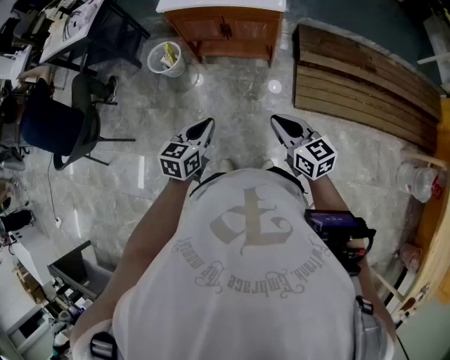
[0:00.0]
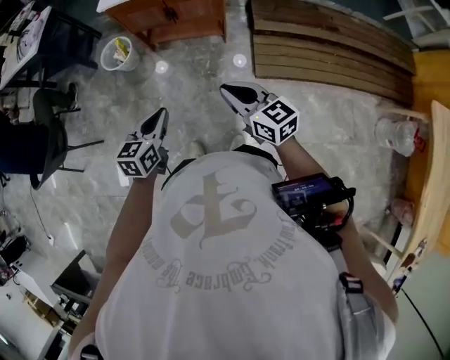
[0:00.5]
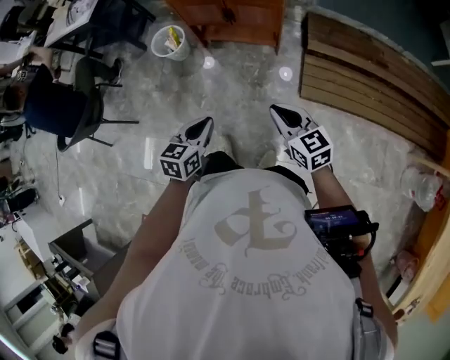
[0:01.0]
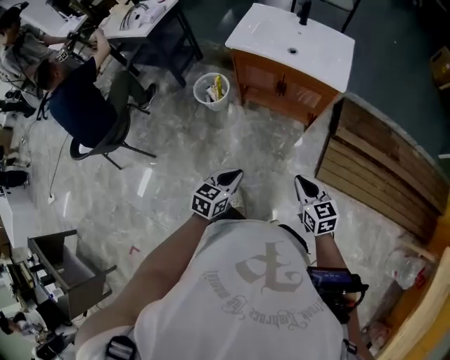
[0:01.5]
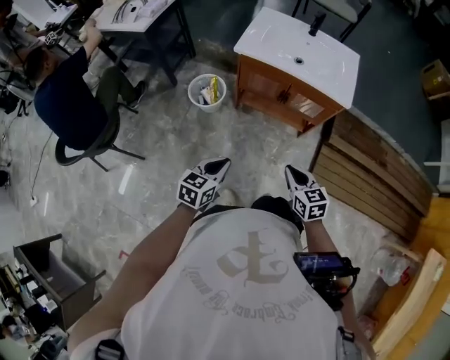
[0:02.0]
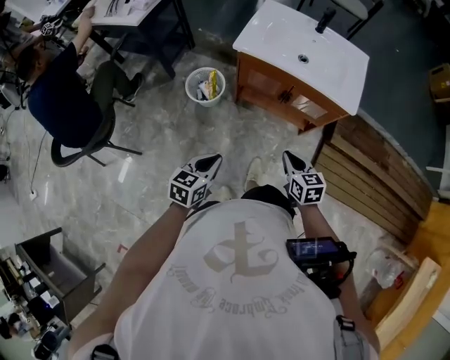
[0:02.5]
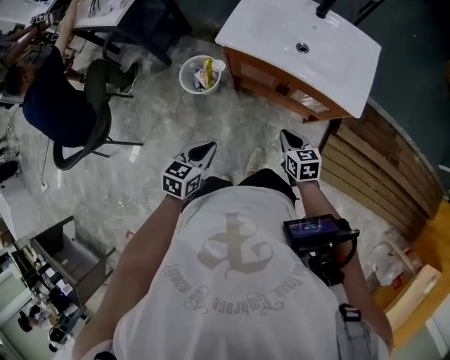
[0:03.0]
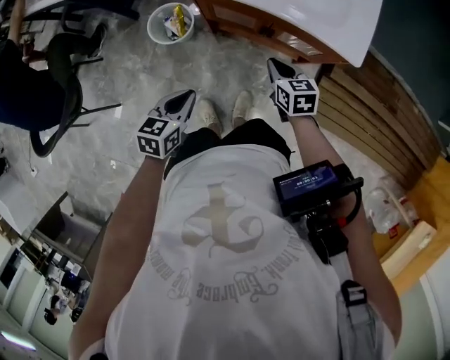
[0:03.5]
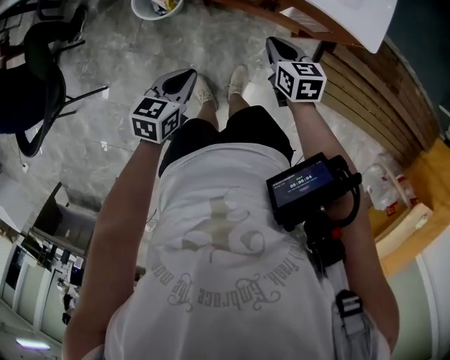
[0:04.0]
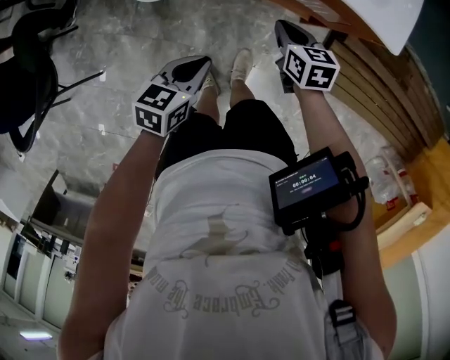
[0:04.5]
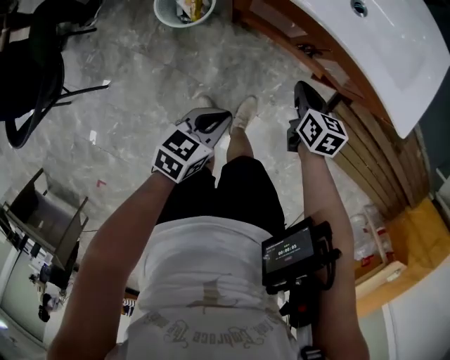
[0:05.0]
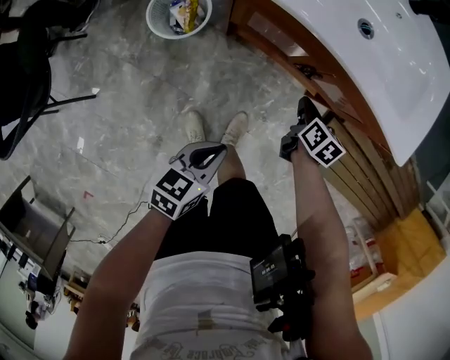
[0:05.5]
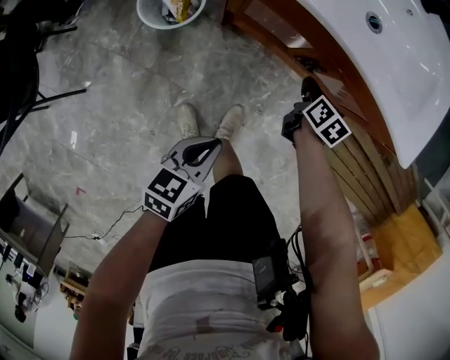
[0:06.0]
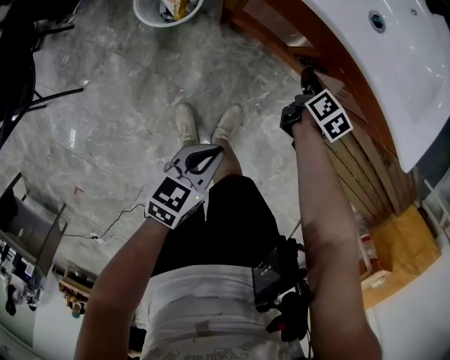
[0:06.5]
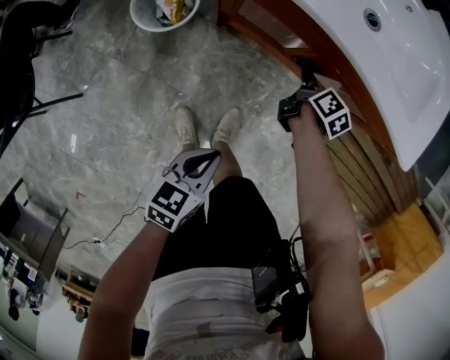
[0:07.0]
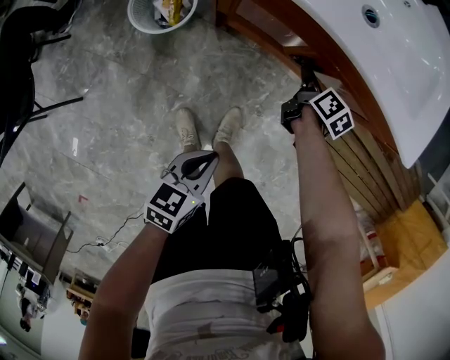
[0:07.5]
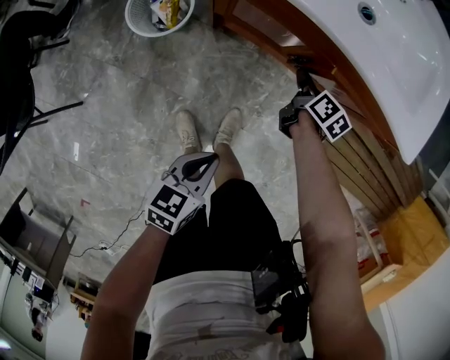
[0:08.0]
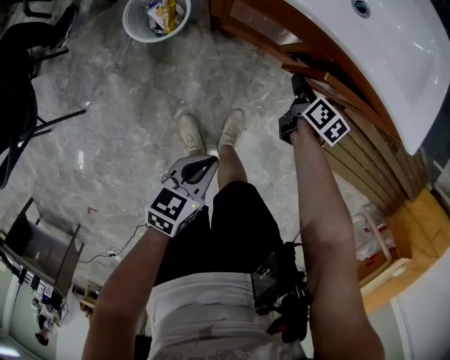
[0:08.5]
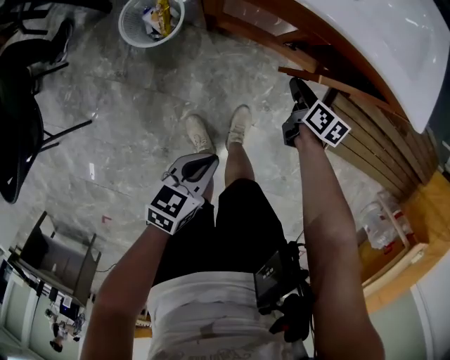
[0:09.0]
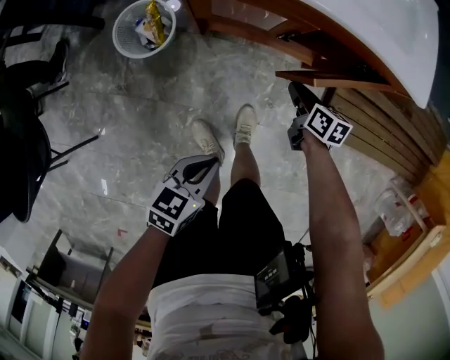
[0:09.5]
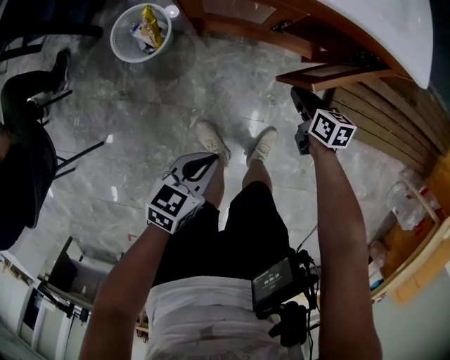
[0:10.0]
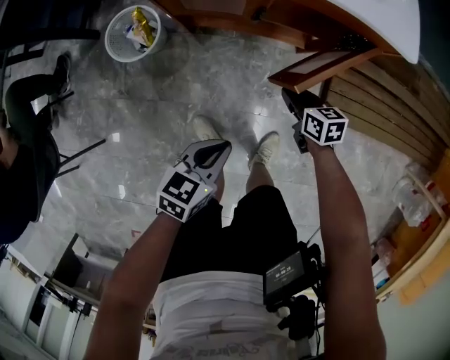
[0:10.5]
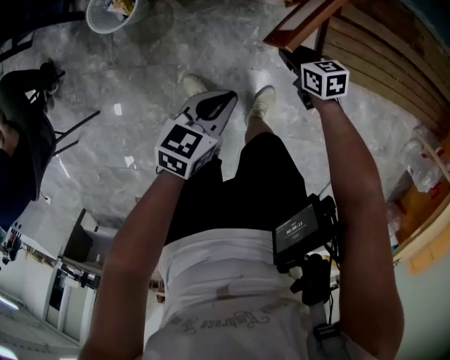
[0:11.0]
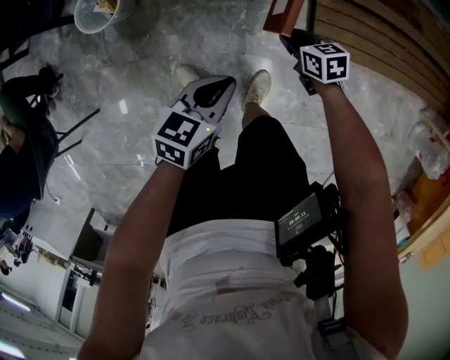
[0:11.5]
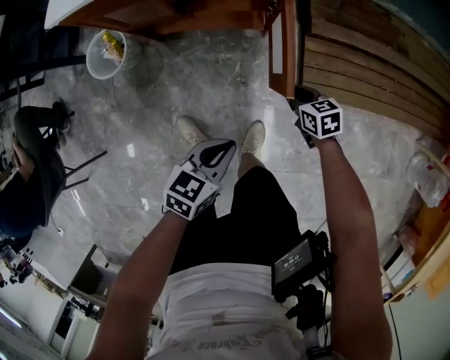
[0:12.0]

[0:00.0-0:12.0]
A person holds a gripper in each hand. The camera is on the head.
0:00.0 to 0:02.0: The right gripper travels forward and to the left by about 25 cm. The left gripper heads to the left and forward, covering approximately 25 cm.
0:02.0 to 0:04.0: The grippers both shift forward and downward by roughly 30 cm.
0:04.0 to 0:06.0: The left gripper moves downward, about 10 cm, while the right gripper travels downward and forward by approximately 25 cm, and swivels approximately 30 degrees.
0:08.0 to 0:10.0: The left gripper changes place by some 5 cm; the right gripper is displaced backward by roughly 15 cm.
0:10.0 to 0:12.0: The left gripper is displaced to the right by some 25 cm. The right gripper goes about 25 cm to the right and backward.

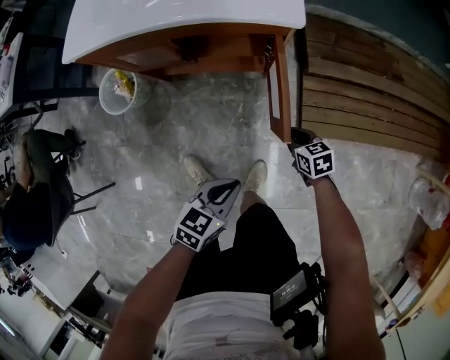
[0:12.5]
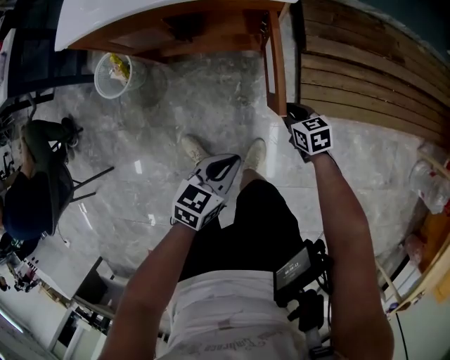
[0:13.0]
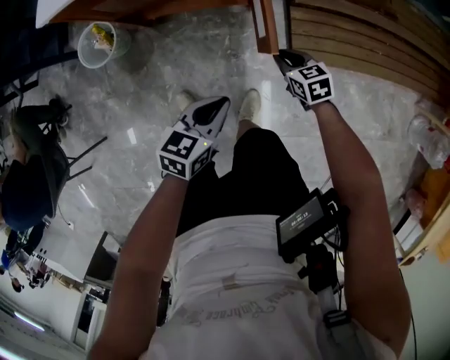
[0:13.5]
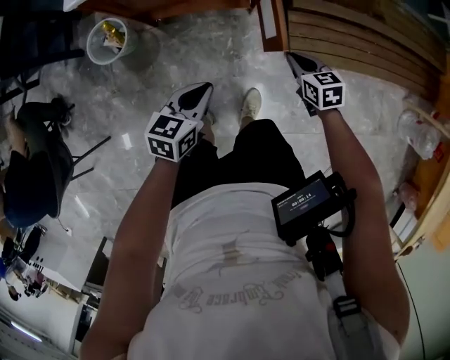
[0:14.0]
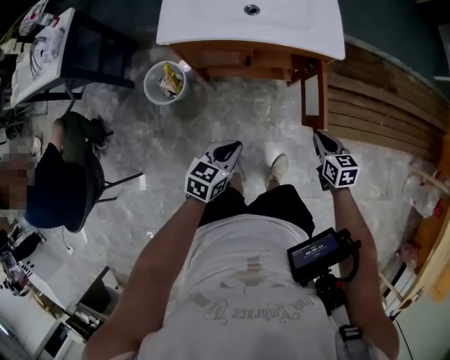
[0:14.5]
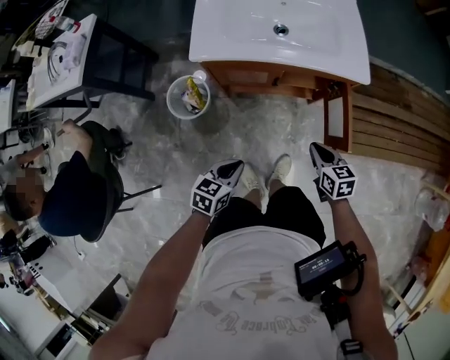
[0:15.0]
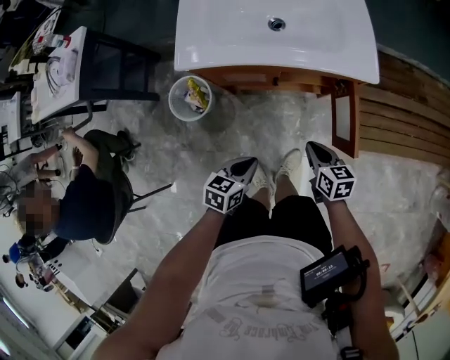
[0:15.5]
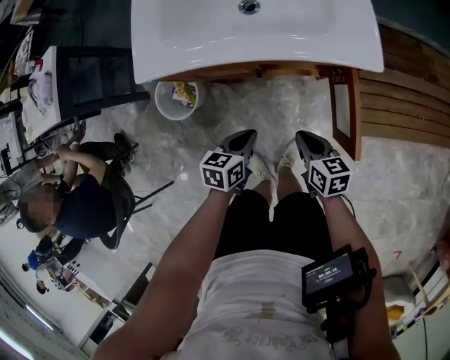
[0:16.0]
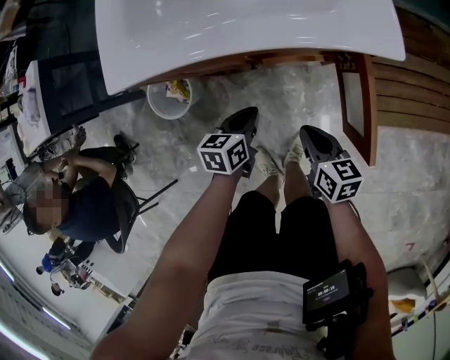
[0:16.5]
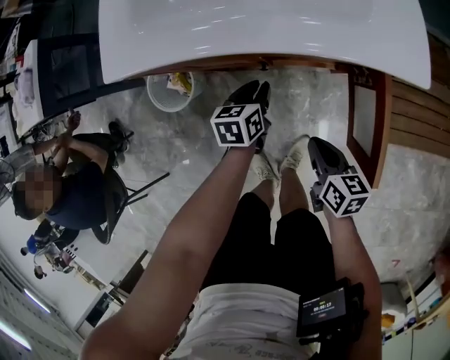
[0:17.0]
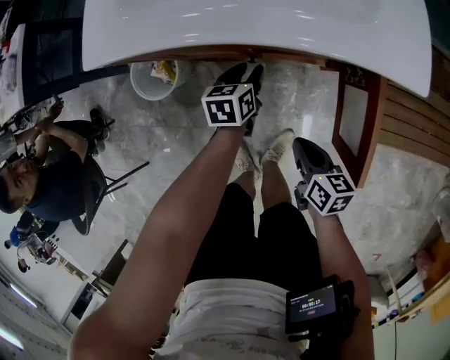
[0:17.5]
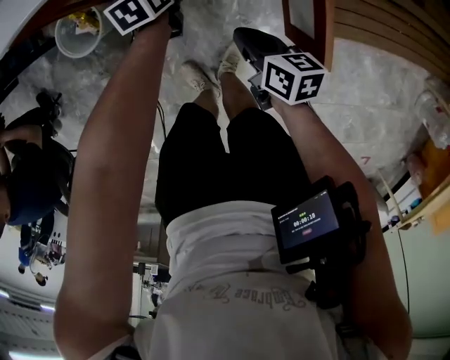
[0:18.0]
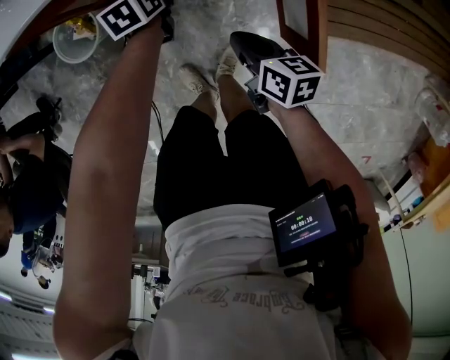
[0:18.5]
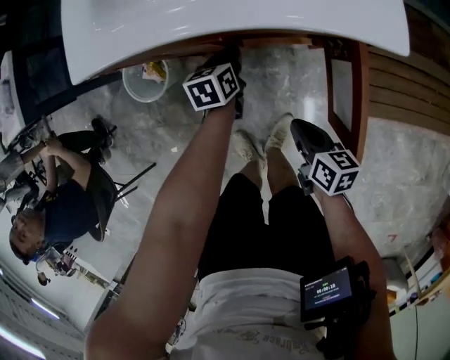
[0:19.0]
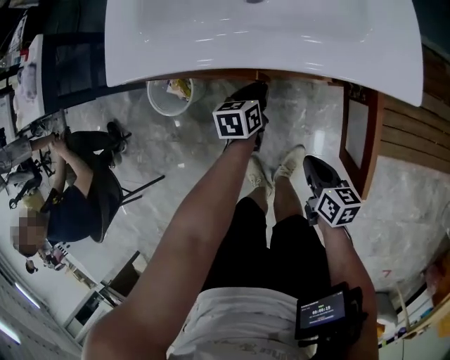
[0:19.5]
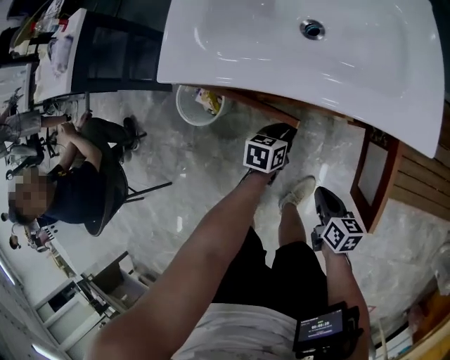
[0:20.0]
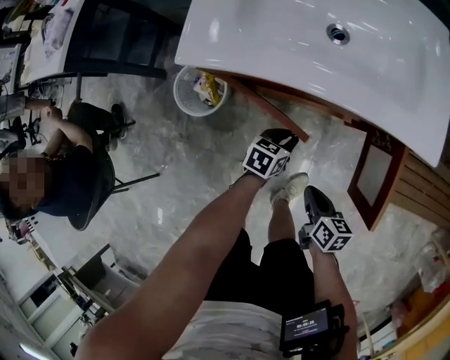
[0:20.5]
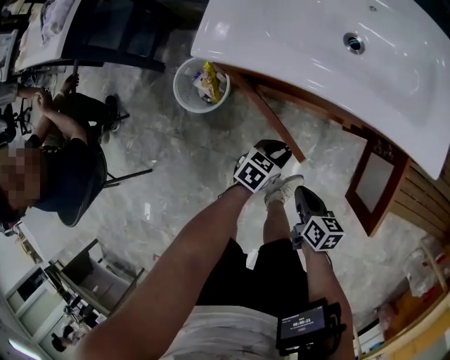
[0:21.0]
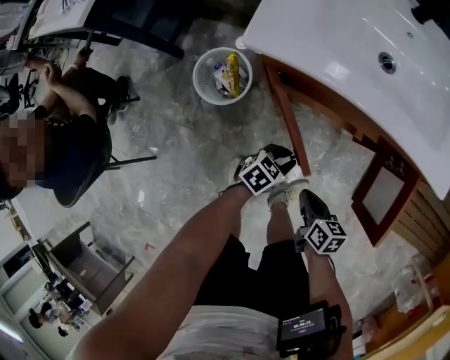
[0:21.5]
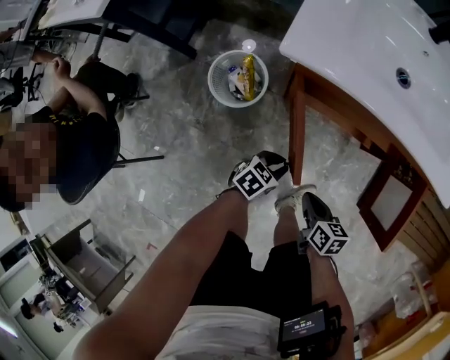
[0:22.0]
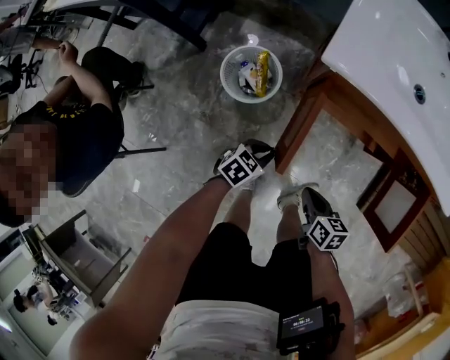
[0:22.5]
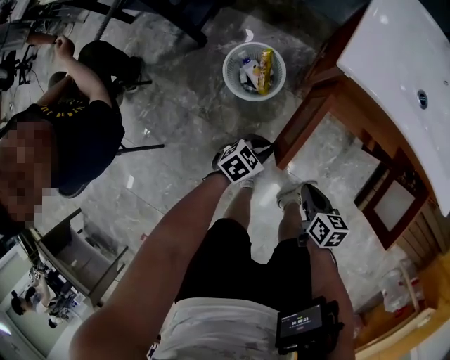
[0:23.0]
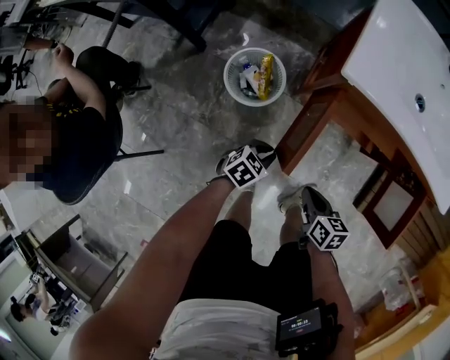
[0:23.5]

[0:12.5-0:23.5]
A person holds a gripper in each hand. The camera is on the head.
0:12.5 to 0:14.5: The right gripper goes approximately 25 cm upward and to the left. Meanwhile the left gripper heads to the left and upward, covering some 25 cm.
0:14.5 to 0:16.0: The right gripper goes about 20 cm to the left, downward and forward; the left gripper moves forward and downward, some 20 cm.
0:16.0 to 0:18.0: The right gripper moves downward, about 10 cm. The left gripper goes approximately 20 cm forward and downward, and opens.
0:18.0 to 0:20.0: The left gripper heads backward, covering some 5 cm.
0:20.0 to 0:21.5: The right gripper is displaced to the left by roughly 15 cm, while the left gripper travels backward and to the left by approximately 15 cm, and swivels some 20 degrees.
0:21.5 to 0:23.5: Both grippers move to the left, roughly 15 cm.

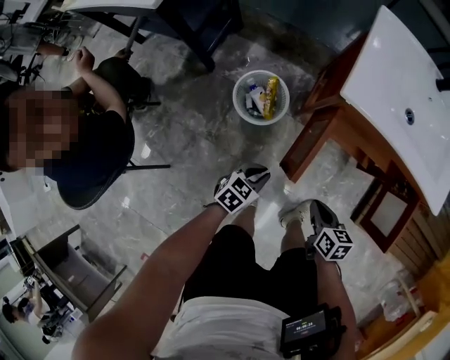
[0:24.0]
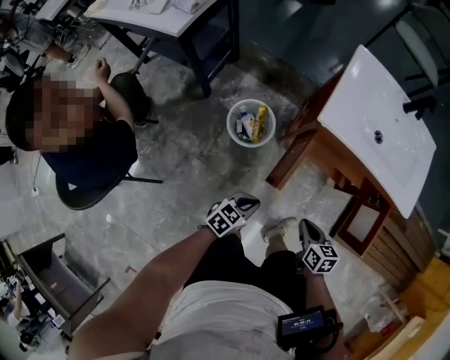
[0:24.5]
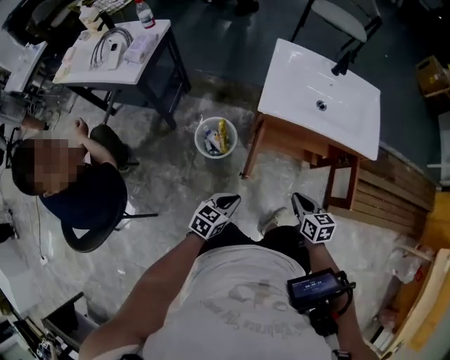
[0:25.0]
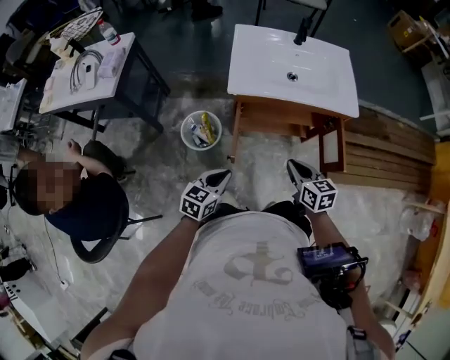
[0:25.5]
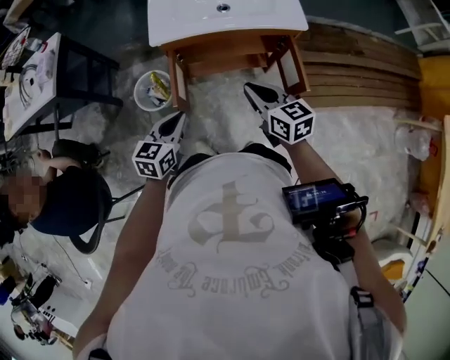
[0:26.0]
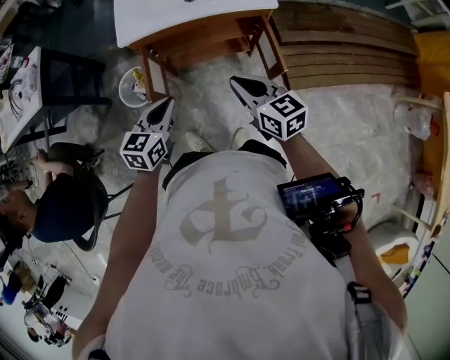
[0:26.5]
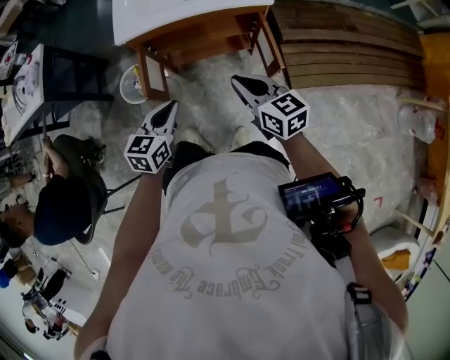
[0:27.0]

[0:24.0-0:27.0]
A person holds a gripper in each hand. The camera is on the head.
0:24.0 to 0:25.5: The grippers both shift upward by some 25 cm. The right gripper changes its angle by roughly 20 degrees.
0:25.5 to 0:27.0: The grippers both shift to the right by some 20 cm.

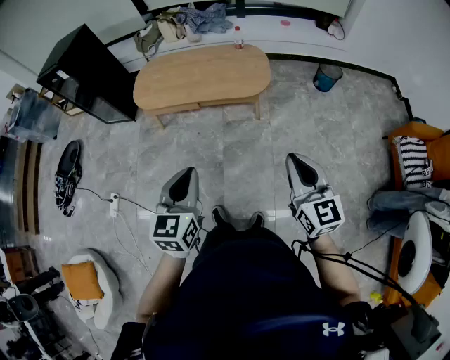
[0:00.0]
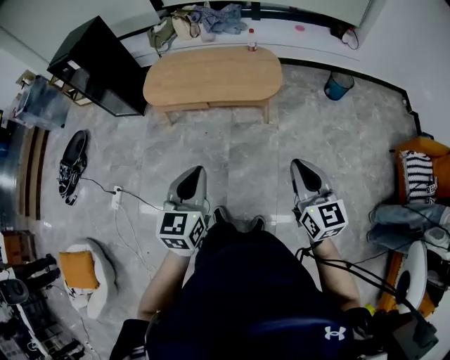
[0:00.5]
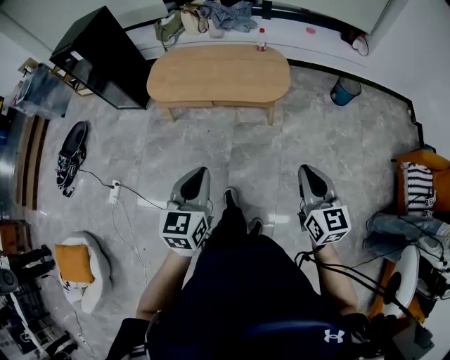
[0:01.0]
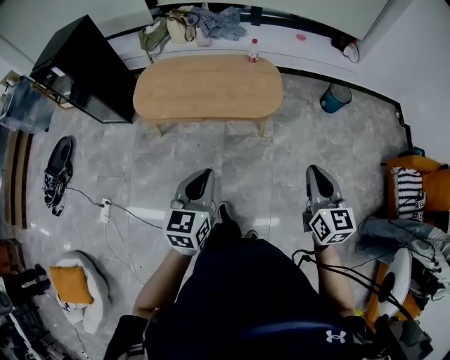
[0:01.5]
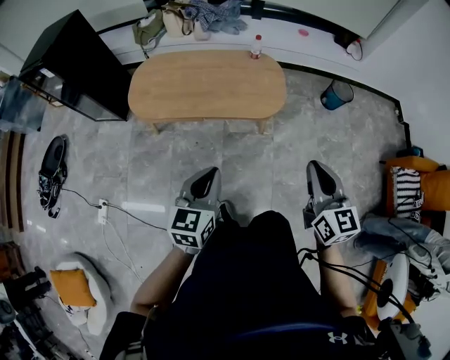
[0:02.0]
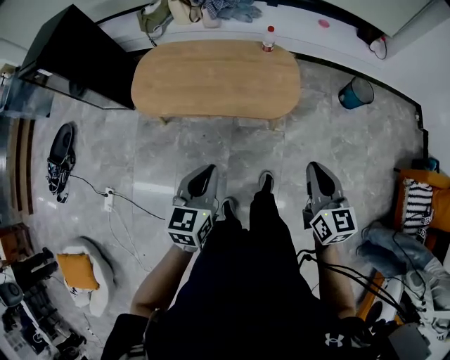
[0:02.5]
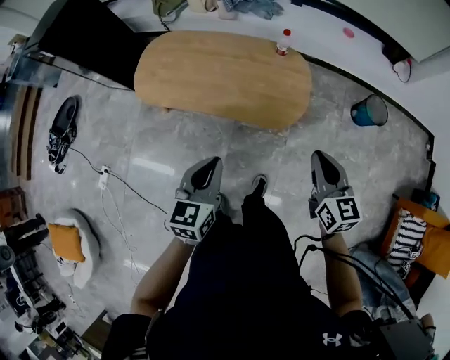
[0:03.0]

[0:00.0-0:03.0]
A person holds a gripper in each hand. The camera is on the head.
0:00.0 to 0:01.5: The grippers both shift forward by some 15 cm.
0:01.5 to 0:03.0: The two grippers go approximately 25 cm forward.
